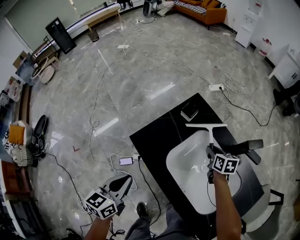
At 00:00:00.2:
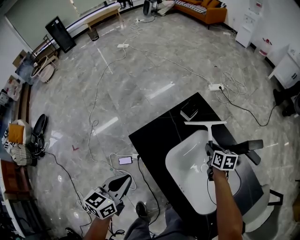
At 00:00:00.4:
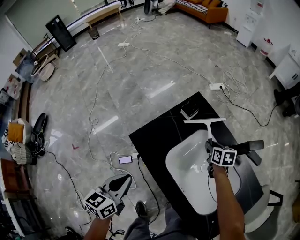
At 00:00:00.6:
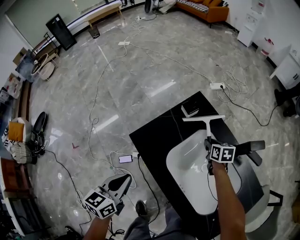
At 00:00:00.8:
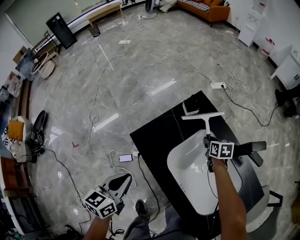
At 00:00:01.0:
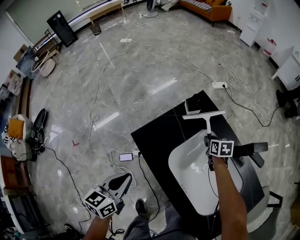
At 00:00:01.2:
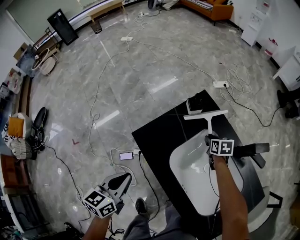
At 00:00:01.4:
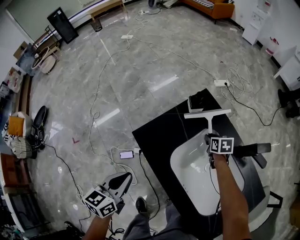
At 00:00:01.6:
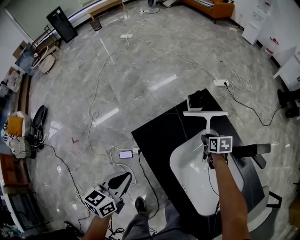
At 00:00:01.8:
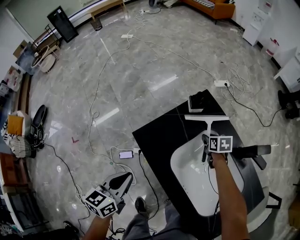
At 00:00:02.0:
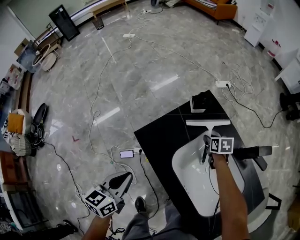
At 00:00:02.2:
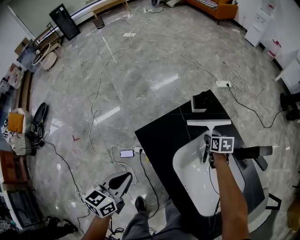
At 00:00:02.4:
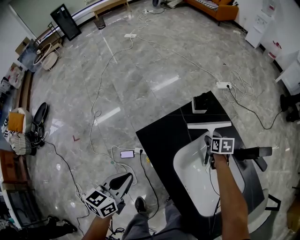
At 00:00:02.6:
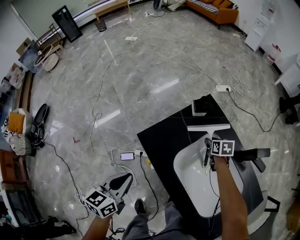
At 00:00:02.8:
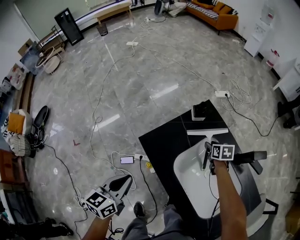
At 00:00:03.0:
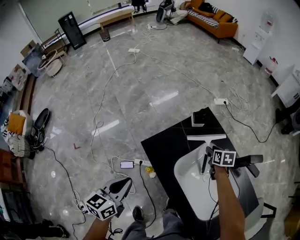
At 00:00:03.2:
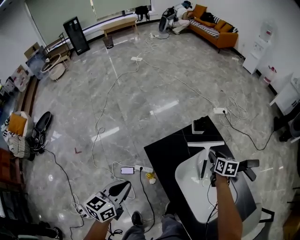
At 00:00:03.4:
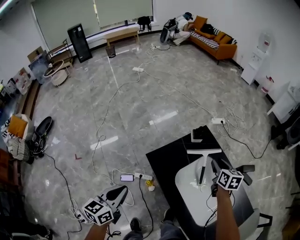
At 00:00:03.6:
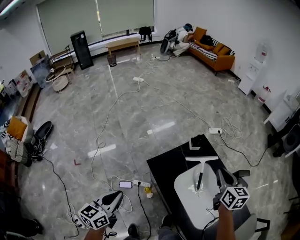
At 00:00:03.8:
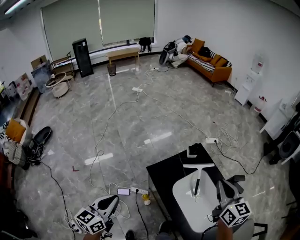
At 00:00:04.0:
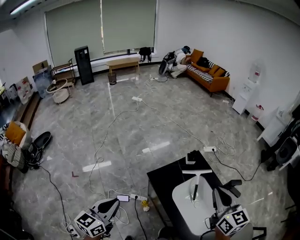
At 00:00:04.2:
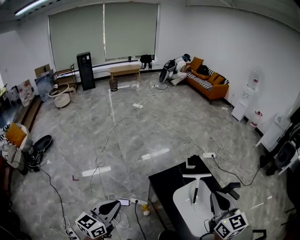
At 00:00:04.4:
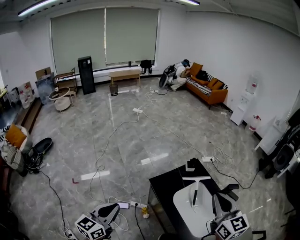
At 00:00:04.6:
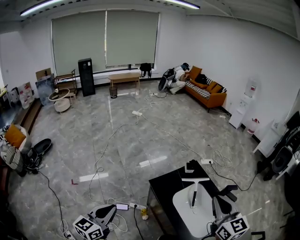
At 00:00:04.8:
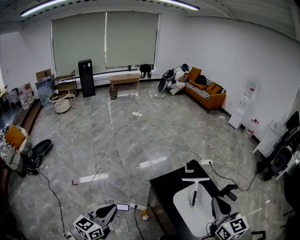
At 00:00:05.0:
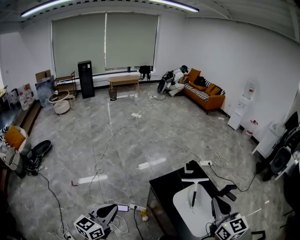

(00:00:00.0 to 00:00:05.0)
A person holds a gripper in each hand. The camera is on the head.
00:00:00.0 - 00:00:01.6: The right gripper moves downward, forward and to the left, about 10 cm.
00:00:01.6 - 00:00:03.4: The left gripper travels upward, to the left and backward by roughly 15 cm. The right gripper travels upward by approximately 25 cm, and turns by approximately 20 degrees.
00:00:03.4 - 00:00:05.0: The left gripper heads upward, backward and to the left, covering about 25 cm. Meanwhile the right gripper moves upward and backward, some 50 cm, rotates about 40 degrees, and closes its fingers.

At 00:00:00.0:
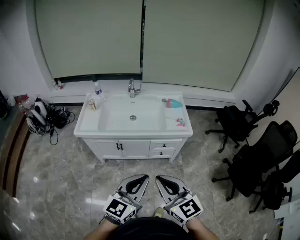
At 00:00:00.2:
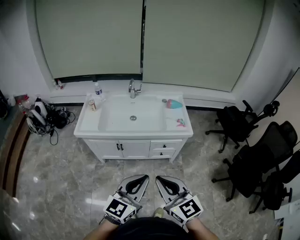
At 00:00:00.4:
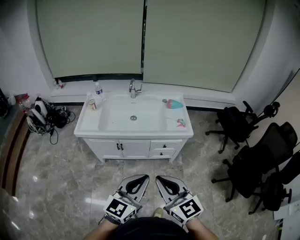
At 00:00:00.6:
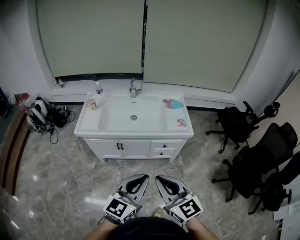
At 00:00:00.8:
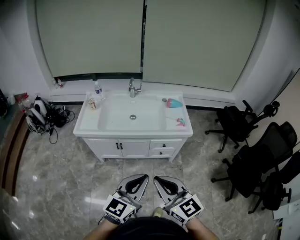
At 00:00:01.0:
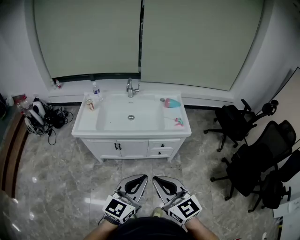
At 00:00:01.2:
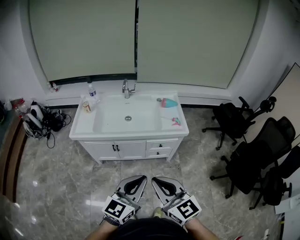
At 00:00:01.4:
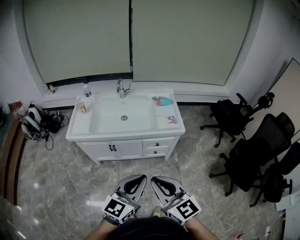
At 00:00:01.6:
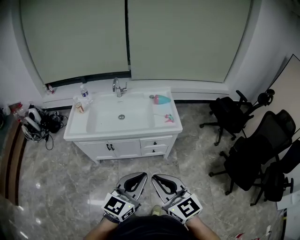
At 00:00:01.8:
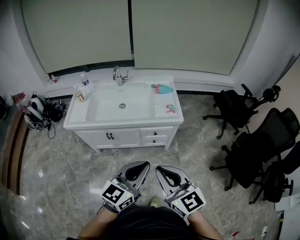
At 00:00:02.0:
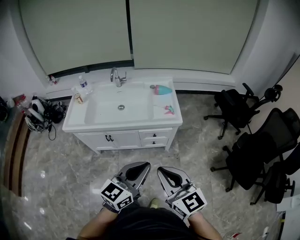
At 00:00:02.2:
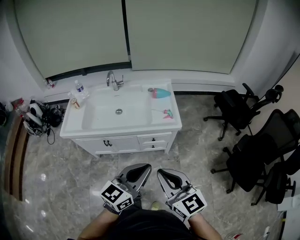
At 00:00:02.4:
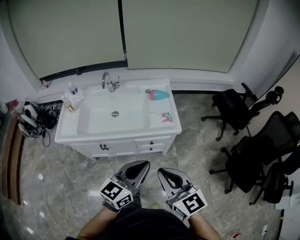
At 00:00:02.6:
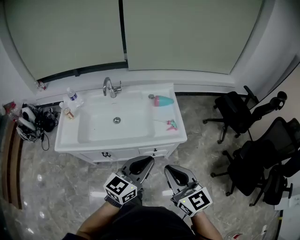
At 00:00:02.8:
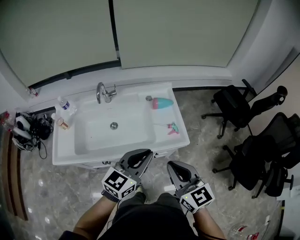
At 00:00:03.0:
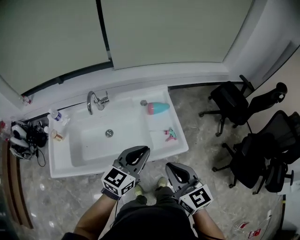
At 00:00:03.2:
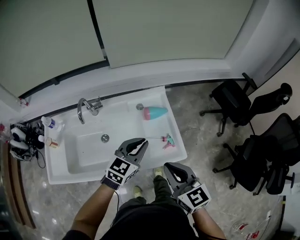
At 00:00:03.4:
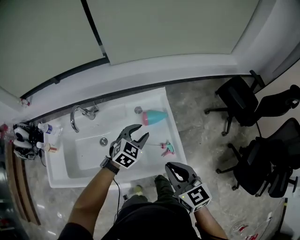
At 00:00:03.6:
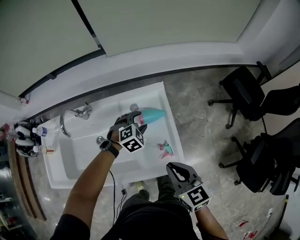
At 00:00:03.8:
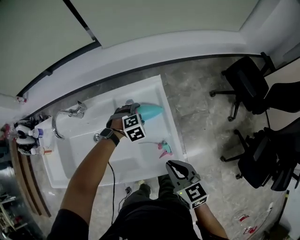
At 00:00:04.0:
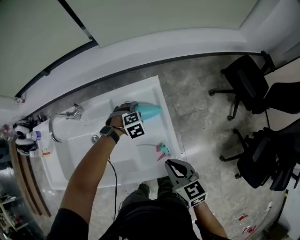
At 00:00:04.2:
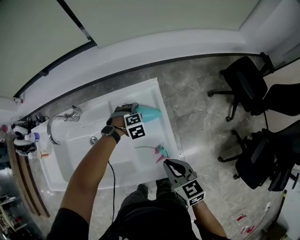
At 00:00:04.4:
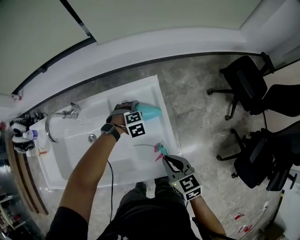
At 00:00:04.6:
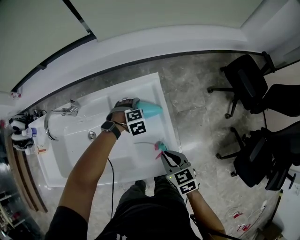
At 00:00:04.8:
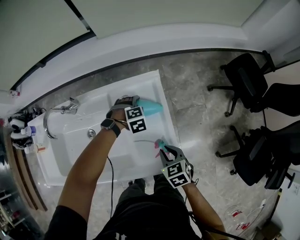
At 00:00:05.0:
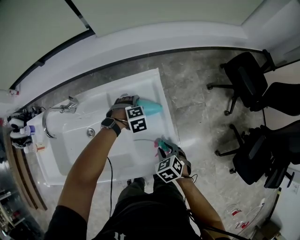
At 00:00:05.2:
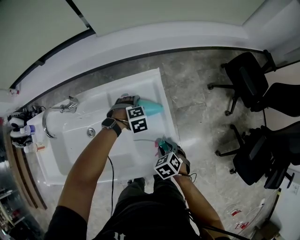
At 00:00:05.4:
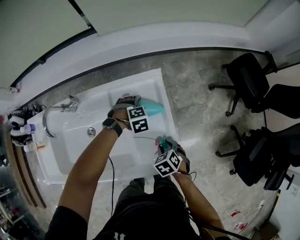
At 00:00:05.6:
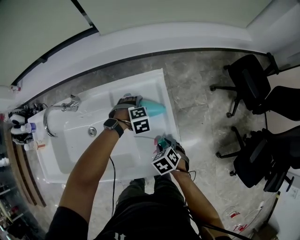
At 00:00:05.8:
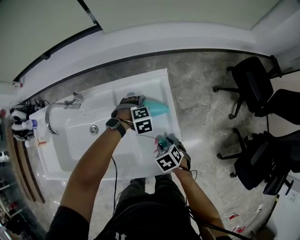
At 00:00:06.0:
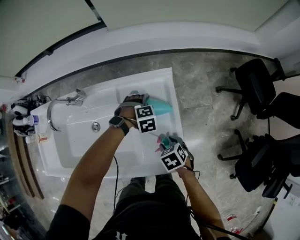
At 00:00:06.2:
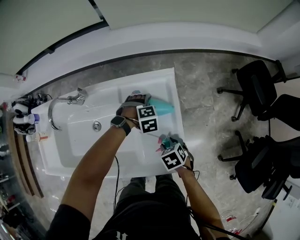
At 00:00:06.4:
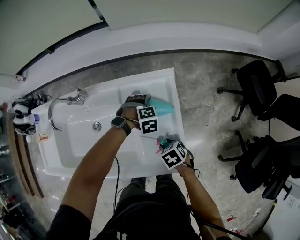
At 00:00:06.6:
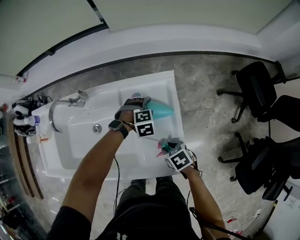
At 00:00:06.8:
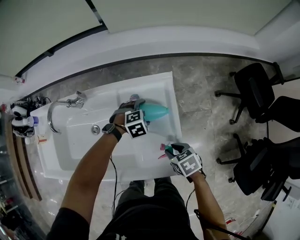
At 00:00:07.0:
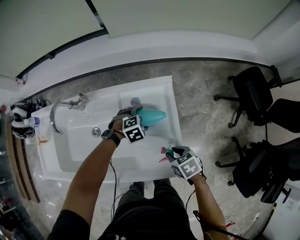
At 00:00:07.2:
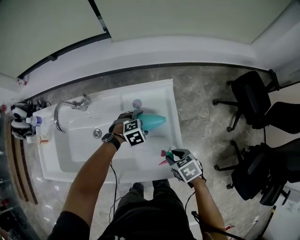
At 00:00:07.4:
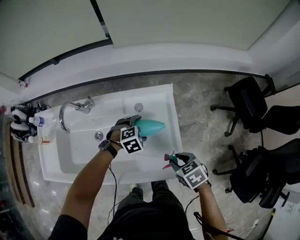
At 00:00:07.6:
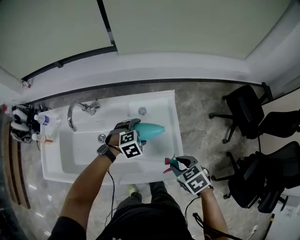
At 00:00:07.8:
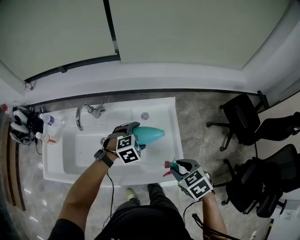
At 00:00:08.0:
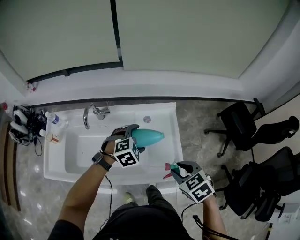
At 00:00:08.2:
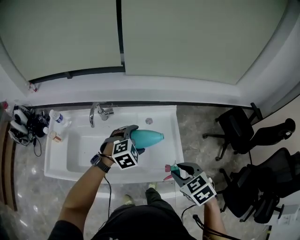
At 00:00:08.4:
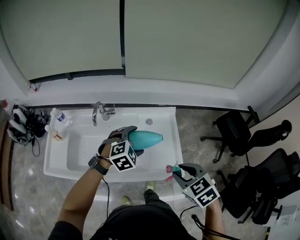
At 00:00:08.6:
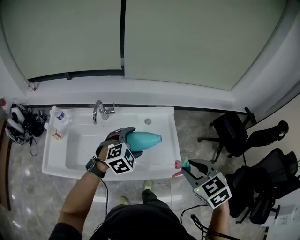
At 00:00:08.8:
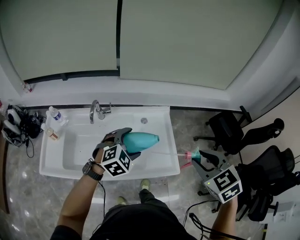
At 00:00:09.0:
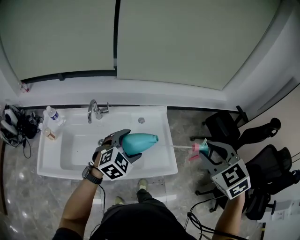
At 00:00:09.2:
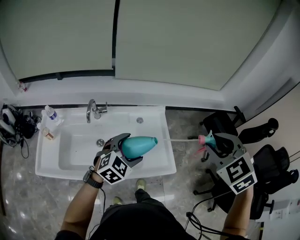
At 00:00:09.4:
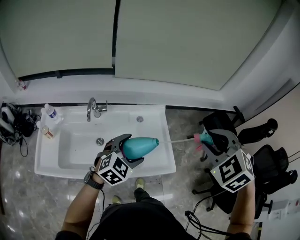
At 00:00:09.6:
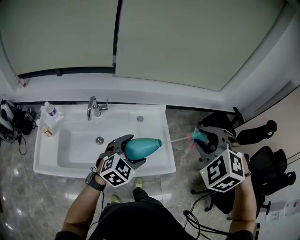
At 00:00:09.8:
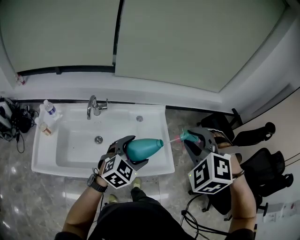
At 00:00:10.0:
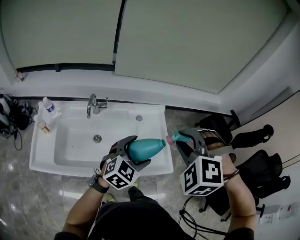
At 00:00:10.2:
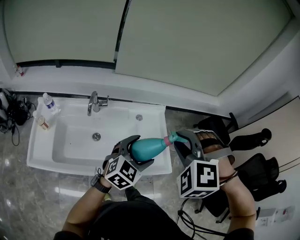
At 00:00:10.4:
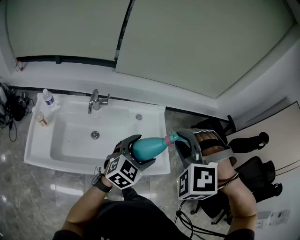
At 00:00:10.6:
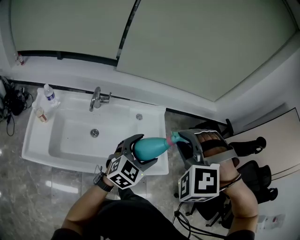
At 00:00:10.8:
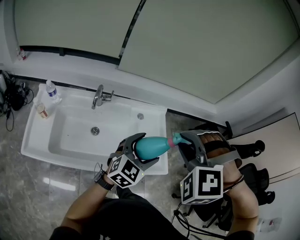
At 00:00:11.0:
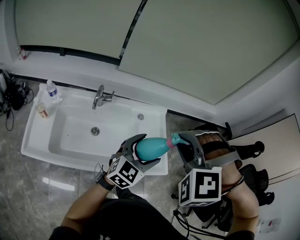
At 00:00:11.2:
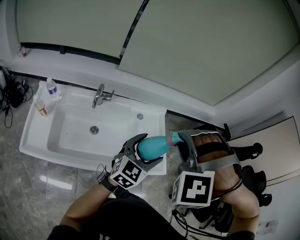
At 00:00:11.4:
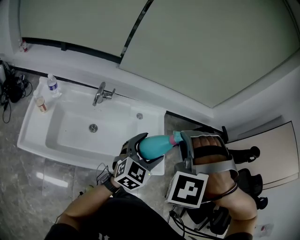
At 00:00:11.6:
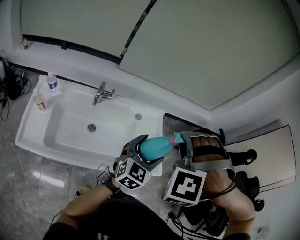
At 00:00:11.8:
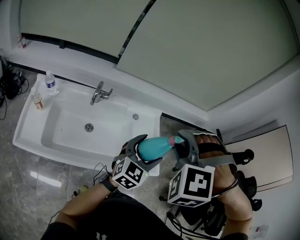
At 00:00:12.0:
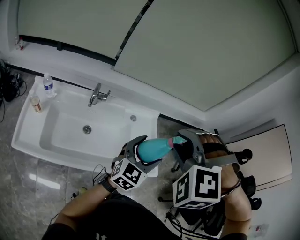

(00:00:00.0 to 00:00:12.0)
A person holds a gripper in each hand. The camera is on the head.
00:00:00.0 - 00:00:01.6: Both grippers move to the right, some 5 cm.
00:00:01.6 - 00:00:03.0: The two grippers go some 40 cm forward.
00:00:03.0 - 00:00:04.4: The right gripper ends up about 35 cm from where it was, and swivels approximately 30 degrees; the left gripper changes place by roughly 50 cm, tilts its fingers about 70 degrees downward, and opens up.
00:00:04.4 - 00:00:06.0: The right gripper heads downward, covering about 15 cm, tilts its fingers some 30 degrees downward, and opens up.
00:00:06.0 - 00:00:07.6: Both grippers move upward, some 15 cm.
00:00:07.6 - 00:00:09.0: The right gripper shifts approximately 30 cm upward, and swivels some 40 degrees. The left gripper travels upward and backward by approximately 25 cm, and turns by some 30 degrees.
00:00:09.0 - 00:00:10.4: The left gripper turns by approximately 20 degrees; the right gripper moves to the left, roughly 15 cm, and twists approximately 60 degrees counterclockwise, seen from behind.
00:00:10.4 - 00:00:12.0: The right gripper moves roughly 5 cm.

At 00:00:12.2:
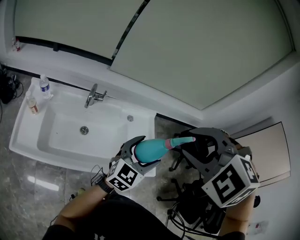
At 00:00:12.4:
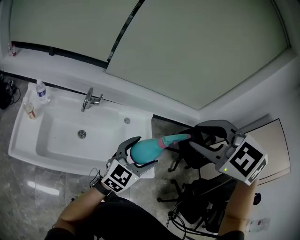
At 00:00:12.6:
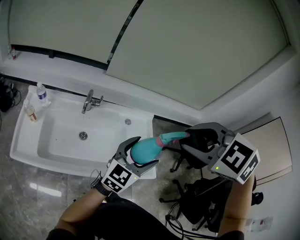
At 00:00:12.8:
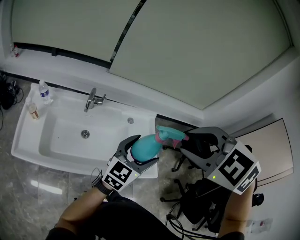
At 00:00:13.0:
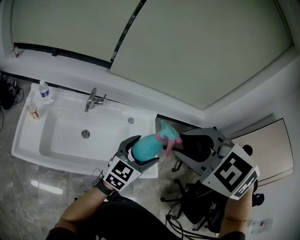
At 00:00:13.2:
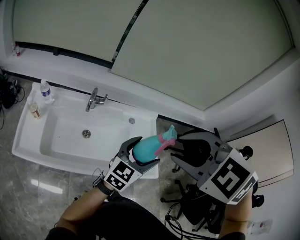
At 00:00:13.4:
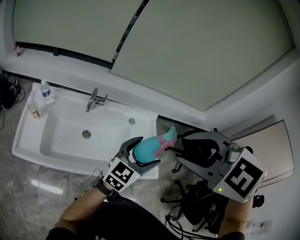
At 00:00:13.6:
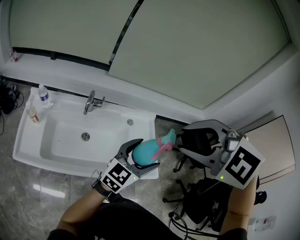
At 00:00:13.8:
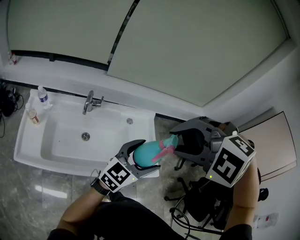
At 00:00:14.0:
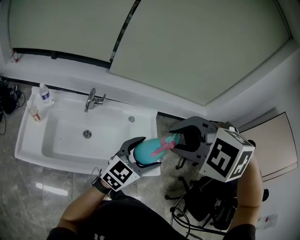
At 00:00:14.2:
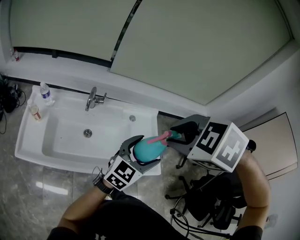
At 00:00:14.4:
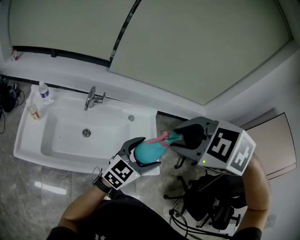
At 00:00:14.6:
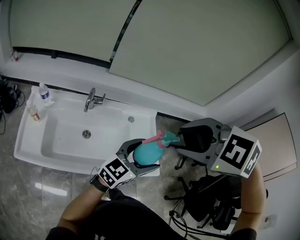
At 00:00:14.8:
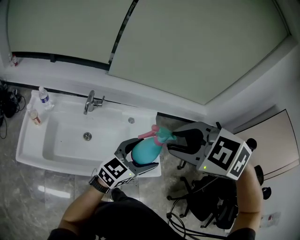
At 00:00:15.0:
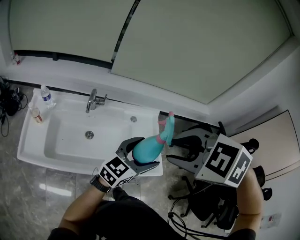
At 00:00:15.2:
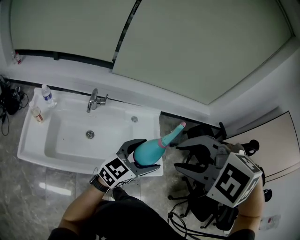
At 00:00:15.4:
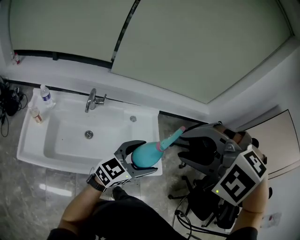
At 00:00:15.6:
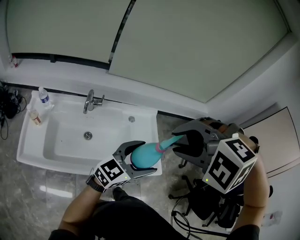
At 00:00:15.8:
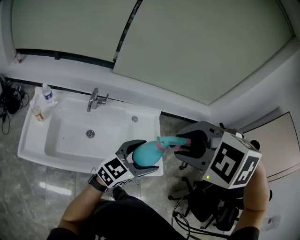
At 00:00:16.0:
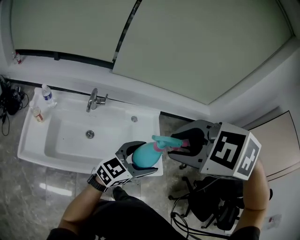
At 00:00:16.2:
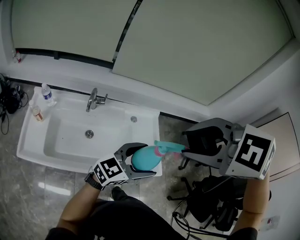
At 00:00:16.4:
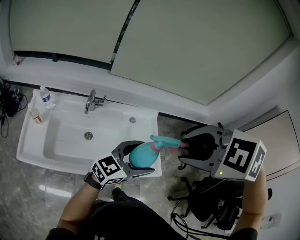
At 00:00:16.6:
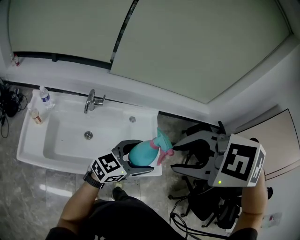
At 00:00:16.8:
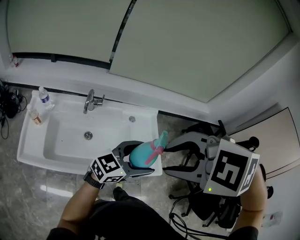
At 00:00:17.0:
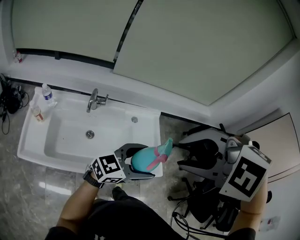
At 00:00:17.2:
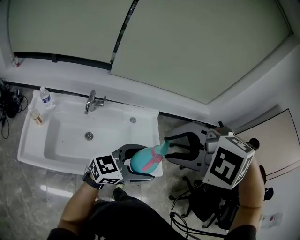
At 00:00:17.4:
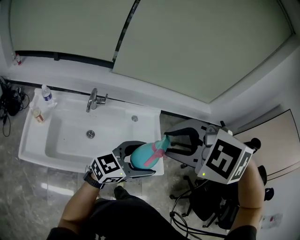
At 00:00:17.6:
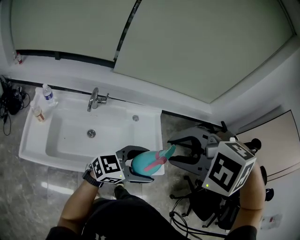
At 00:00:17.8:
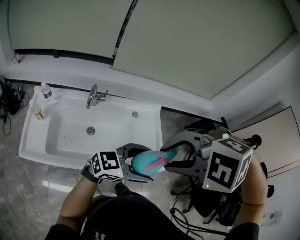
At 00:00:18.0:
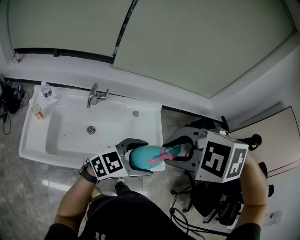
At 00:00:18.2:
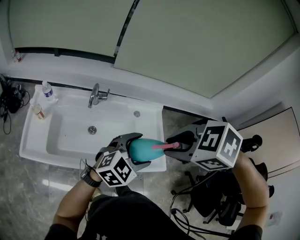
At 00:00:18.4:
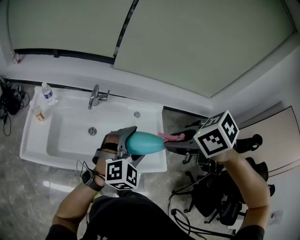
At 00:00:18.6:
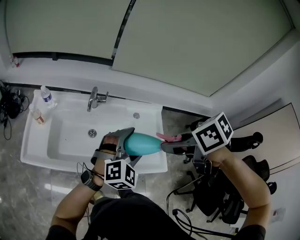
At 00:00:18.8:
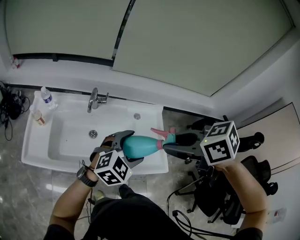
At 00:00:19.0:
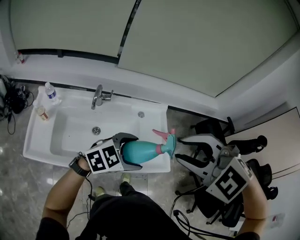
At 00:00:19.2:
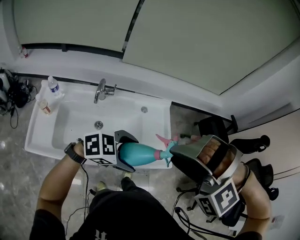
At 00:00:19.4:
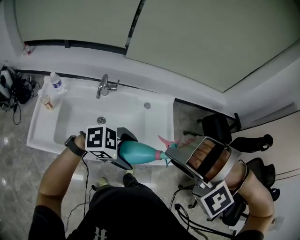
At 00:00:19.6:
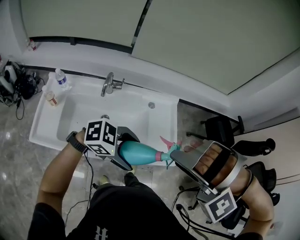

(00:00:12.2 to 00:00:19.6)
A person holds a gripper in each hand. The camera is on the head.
00:00:13.6 - 00:00:15.2: The right gripper moves some 5 cm.
00:00:15.2 - 00:00:16.6: The grippers stay close to where they were, moving slightly.
00:00:16.6 - 00:00:18.2: The left gripper swivels some 30 degrees, while the right gripper travels downward by approximately 5 cm.
00:00:18.2 - 00:00:19.6: The left gripper shifts by roughly 10 cm, and swivels roughly 50 degrees, while the right gripper moves some 5 cm, and twists about 80 degrees counterclockwise, seen from behind.
